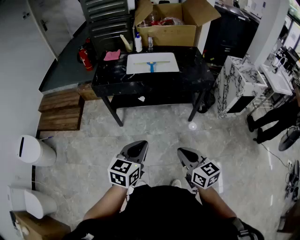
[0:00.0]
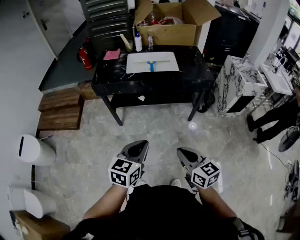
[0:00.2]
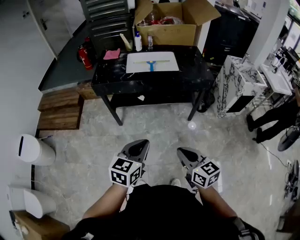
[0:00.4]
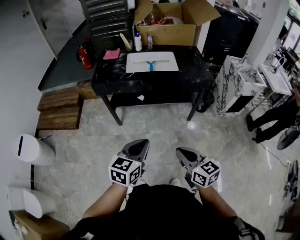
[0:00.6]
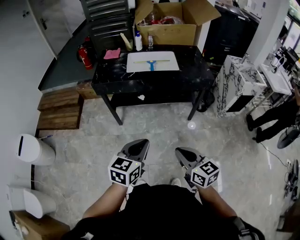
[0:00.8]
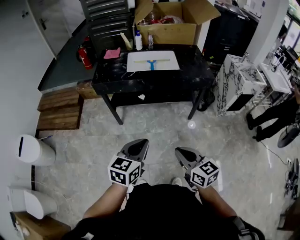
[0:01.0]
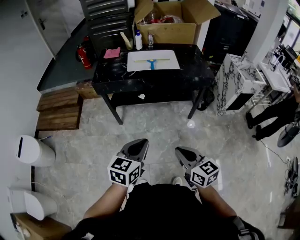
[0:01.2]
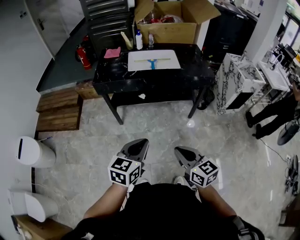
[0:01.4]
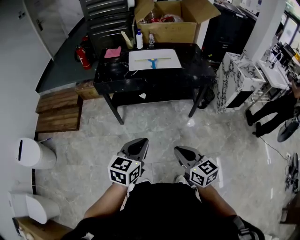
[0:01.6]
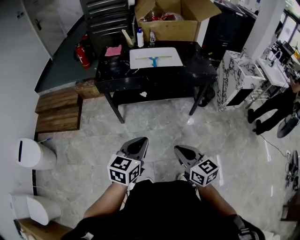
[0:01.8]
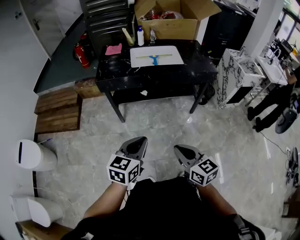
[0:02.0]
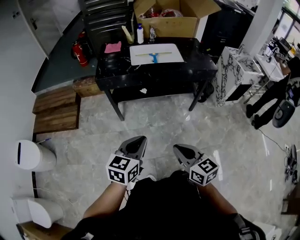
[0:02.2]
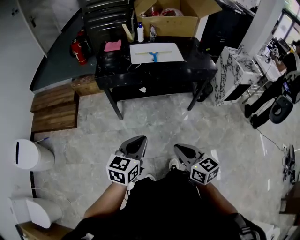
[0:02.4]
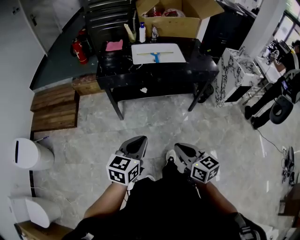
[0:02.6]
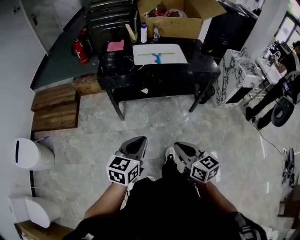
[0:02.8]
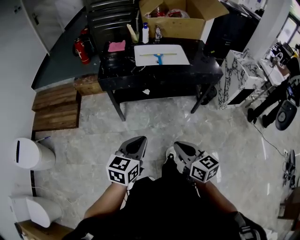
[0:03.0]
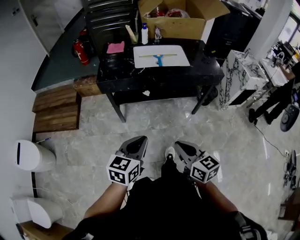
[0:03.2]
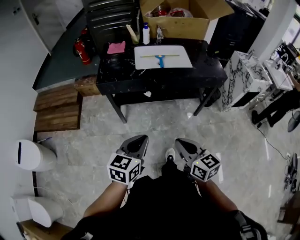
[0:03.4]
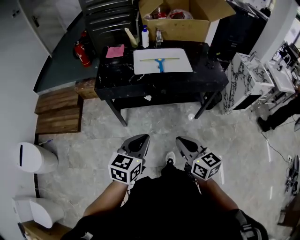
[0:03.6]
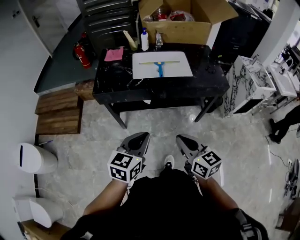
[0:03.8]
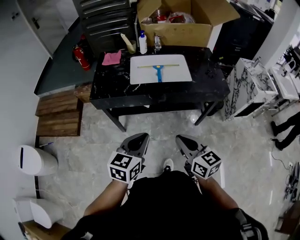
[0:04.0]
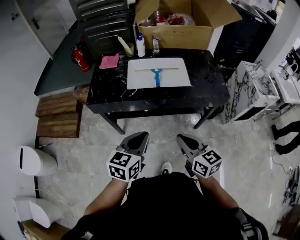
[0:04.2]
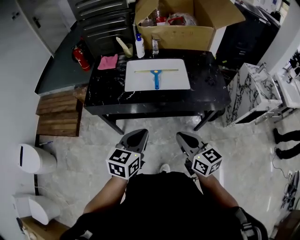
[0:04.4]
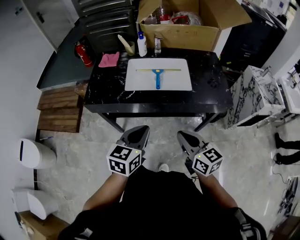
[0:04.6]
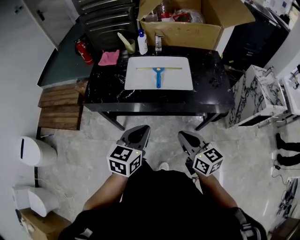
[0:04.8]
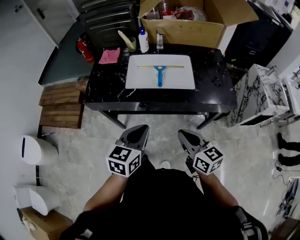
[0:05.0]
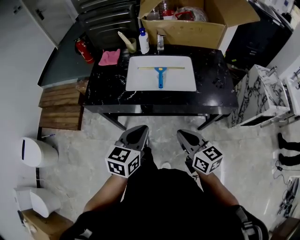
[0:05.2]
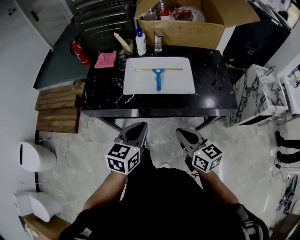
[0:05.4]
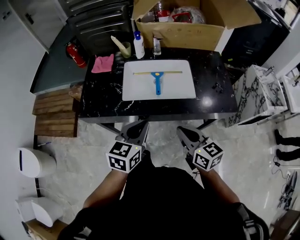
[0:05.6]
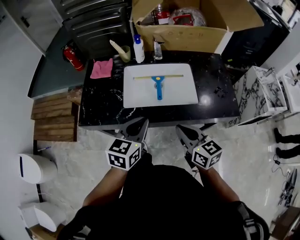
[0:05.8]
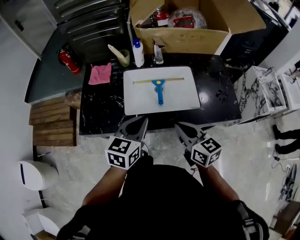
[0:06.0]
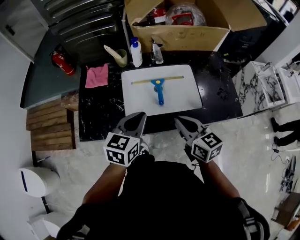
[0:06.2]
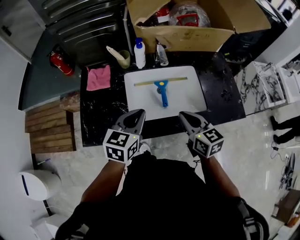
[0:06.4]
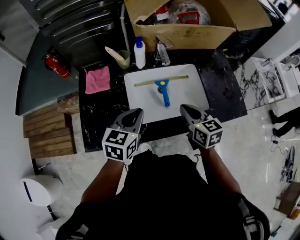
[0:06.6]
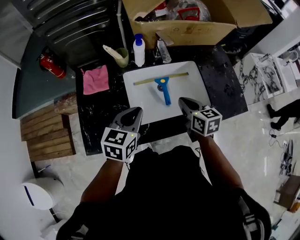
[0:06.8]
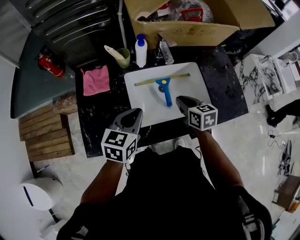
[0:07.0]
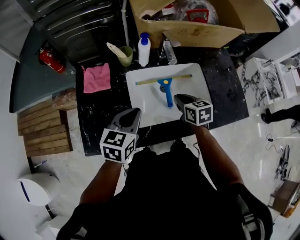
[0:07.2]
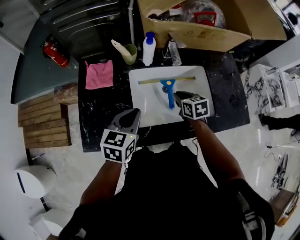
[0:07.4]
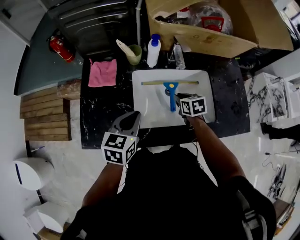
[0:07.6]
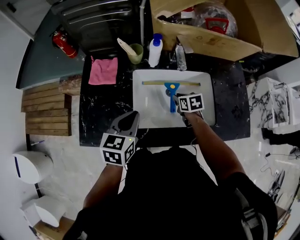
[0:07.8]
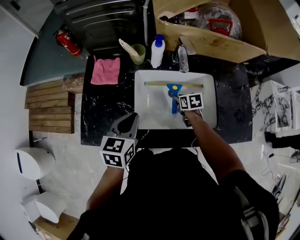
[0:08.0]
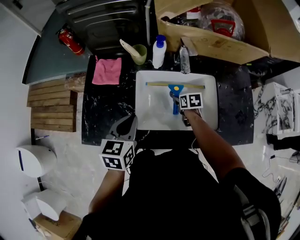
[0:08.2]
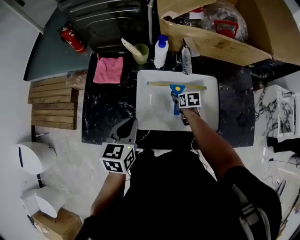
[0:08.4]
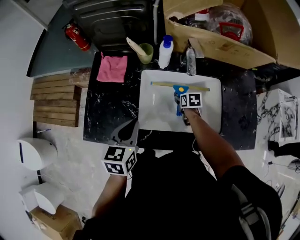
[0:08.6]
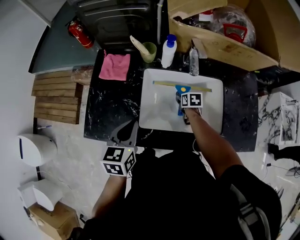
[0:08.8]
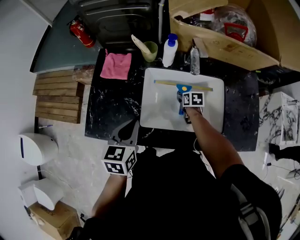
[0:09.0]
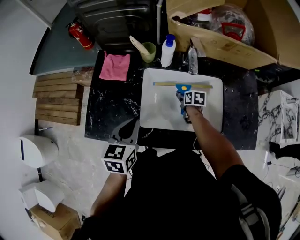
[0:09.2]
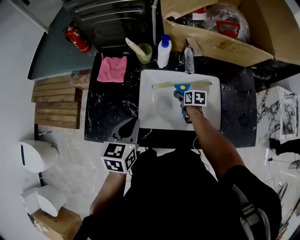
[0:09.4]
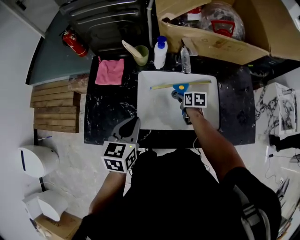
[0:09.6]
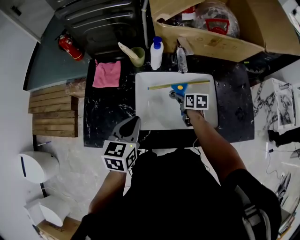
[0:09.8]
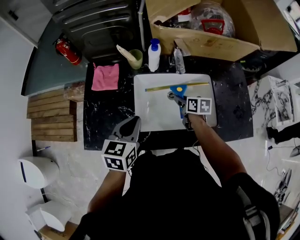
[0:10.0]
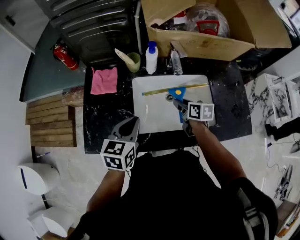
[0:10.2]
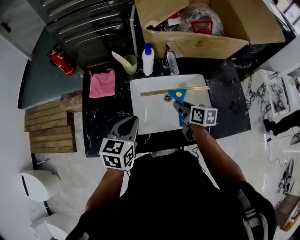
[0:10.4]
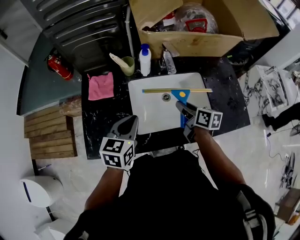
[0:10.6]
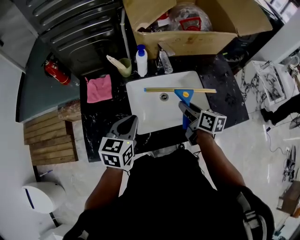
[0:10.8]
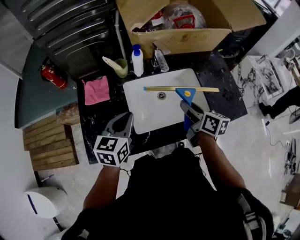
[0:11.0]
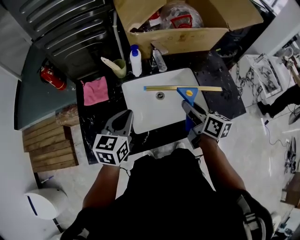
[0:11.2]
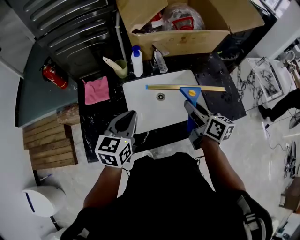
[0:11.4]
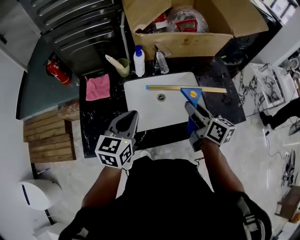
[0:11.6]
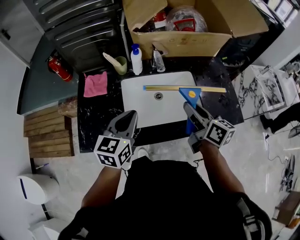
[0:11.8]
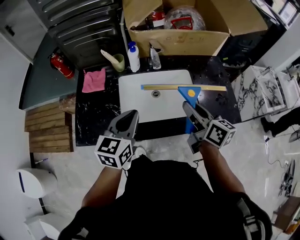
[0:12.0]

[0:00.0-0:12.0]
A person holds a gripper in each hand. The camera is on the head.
0:00.0 to 0:01.6: Both grippers move to the left, some 5 cm.
0:01.6 to 0:03.0: The grippers both shift to the left by roughly 10 cm.
0:03.0 to 0:04.4: Both grippers move forward and to the right, roughly 30 cm.
0:04.4 to 0:06.0: The grippers both shift forward by about 20 cm.
0:06.0 to 0:07.6: The left gripper shifts roughly 15 cm forward, to the left and downward. Meanwhile the right gripper heads forward and downward, covering roughly 30 cm, and points its fingers roughly 30 degrees further downward.
0:07.6 to 0:09.0: The right gripper moves downward, roughly 10 cm, and opens.
0:09.0 to 0:10.4: The right gripper moves upward, some 20 cm, and changes its angle by approximately 30 degrees.
0:10.4 to 0:12.0: The right gripper shifts about 20 cm upward, backward and to the right, and turns by some 20 degrees, while the left gripper is displaced to the right, upward and backward by approximately 10 cm.

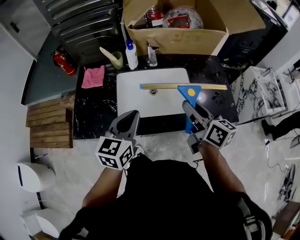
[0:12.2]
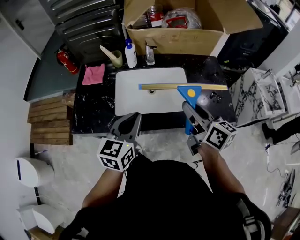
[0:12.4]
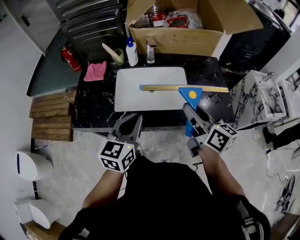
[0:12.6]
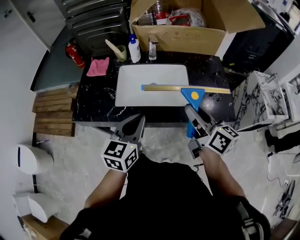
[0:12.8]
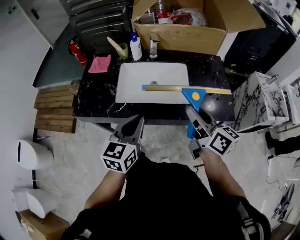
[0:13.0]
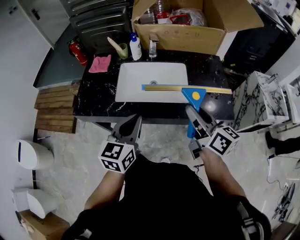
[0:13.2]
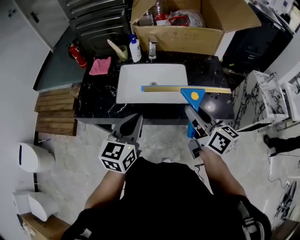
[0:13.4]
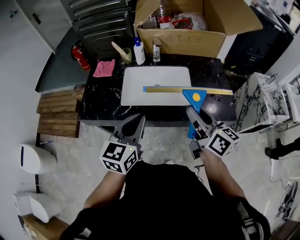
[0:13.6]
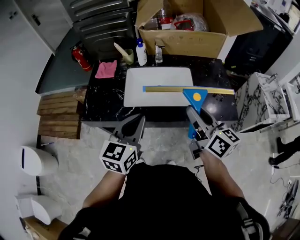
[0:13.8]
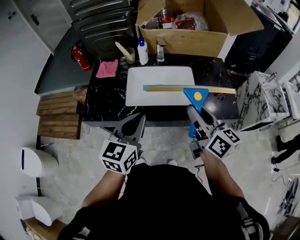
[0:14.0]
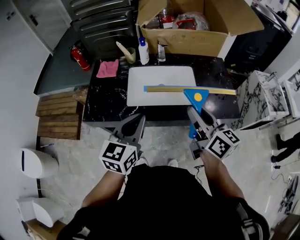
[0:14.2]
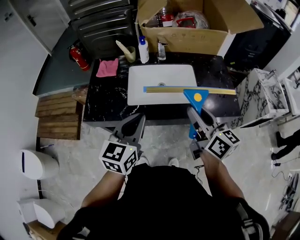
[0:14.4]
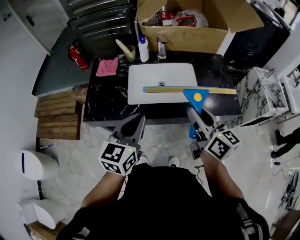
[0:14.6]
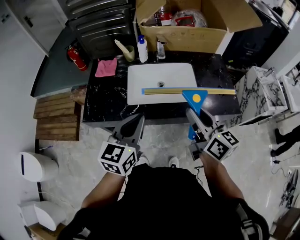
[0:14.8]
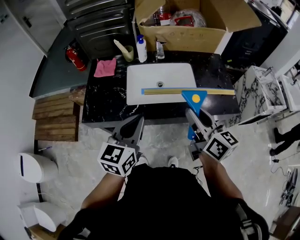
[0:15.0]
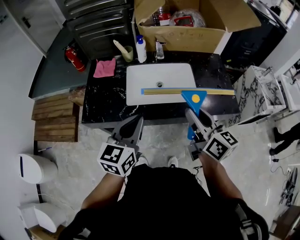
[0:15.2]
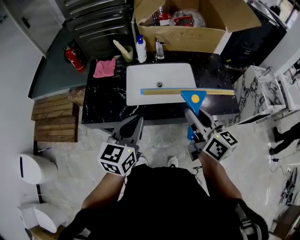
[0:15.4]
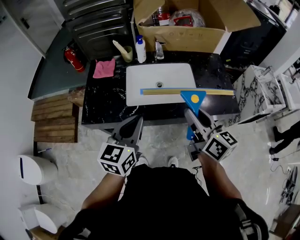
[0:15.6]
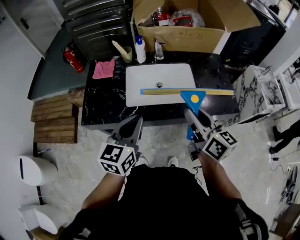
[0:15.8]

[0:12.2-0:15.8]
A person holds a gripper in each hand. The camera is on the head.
0:12.2 to 0:14.0: Both grippers move backward, about 10 cm.
0:14.0 to 0:15.8: The grippers make only small movements.

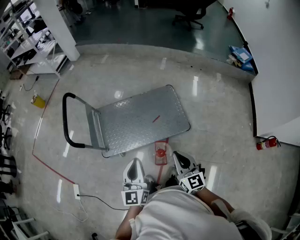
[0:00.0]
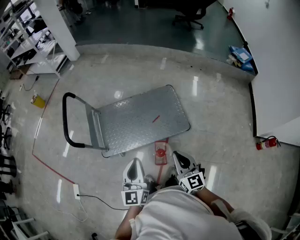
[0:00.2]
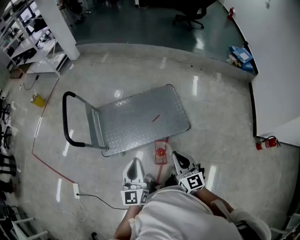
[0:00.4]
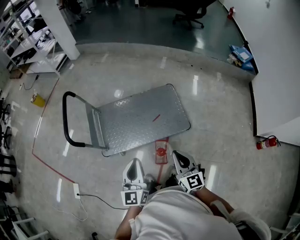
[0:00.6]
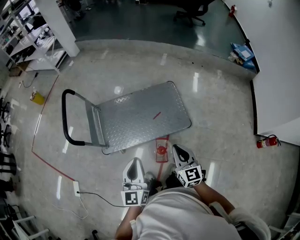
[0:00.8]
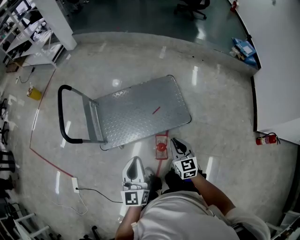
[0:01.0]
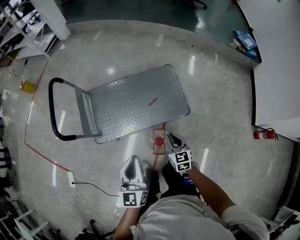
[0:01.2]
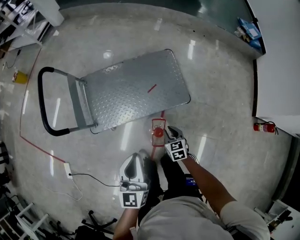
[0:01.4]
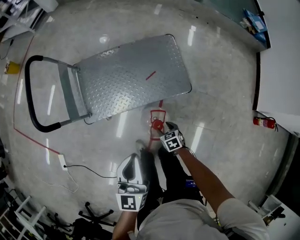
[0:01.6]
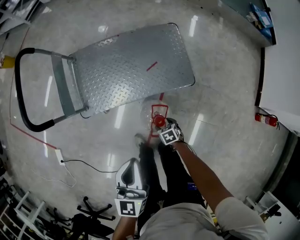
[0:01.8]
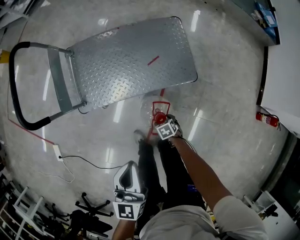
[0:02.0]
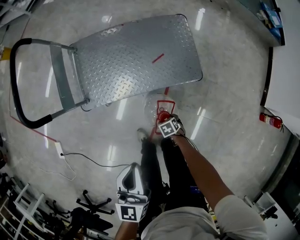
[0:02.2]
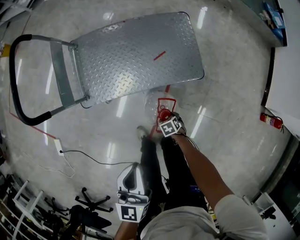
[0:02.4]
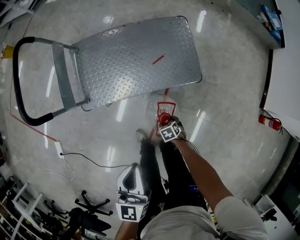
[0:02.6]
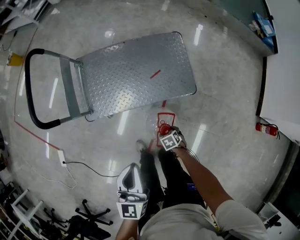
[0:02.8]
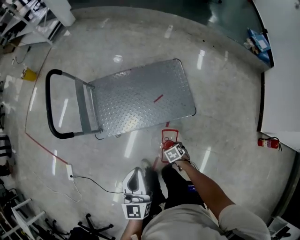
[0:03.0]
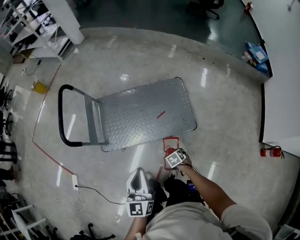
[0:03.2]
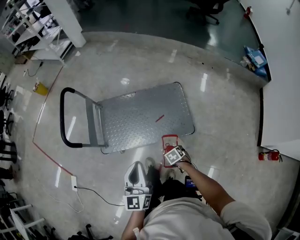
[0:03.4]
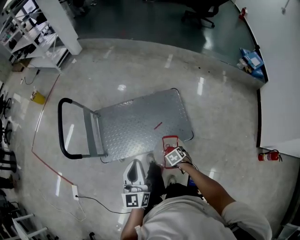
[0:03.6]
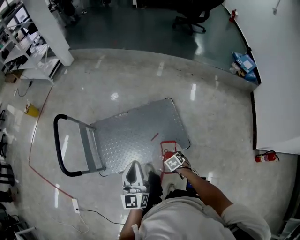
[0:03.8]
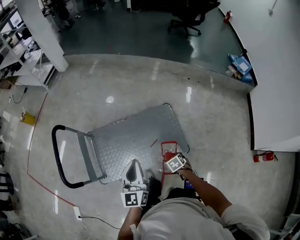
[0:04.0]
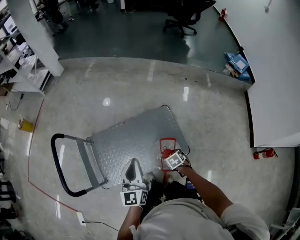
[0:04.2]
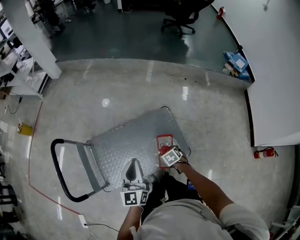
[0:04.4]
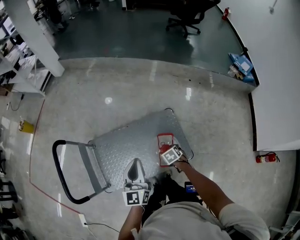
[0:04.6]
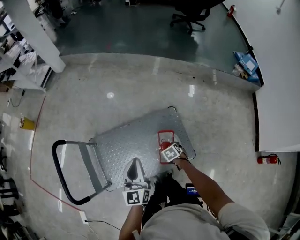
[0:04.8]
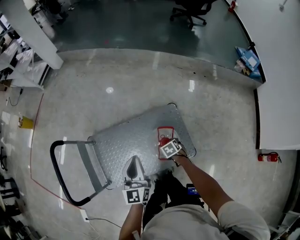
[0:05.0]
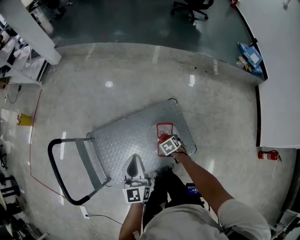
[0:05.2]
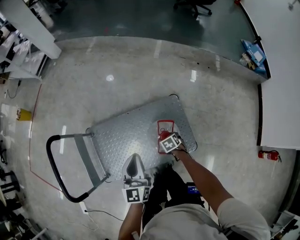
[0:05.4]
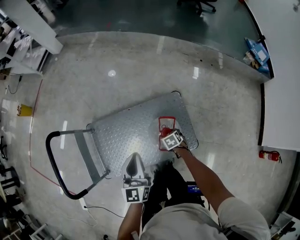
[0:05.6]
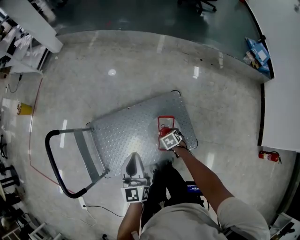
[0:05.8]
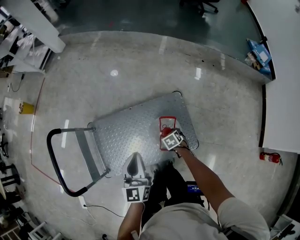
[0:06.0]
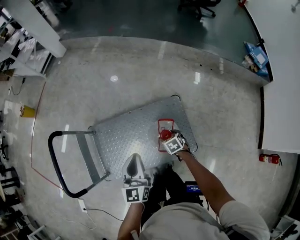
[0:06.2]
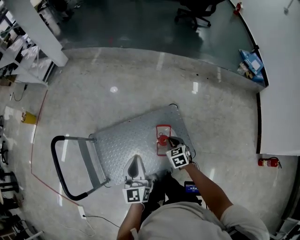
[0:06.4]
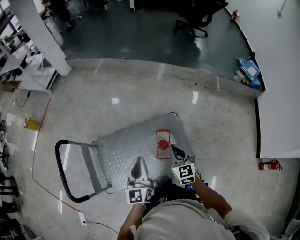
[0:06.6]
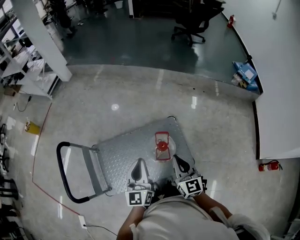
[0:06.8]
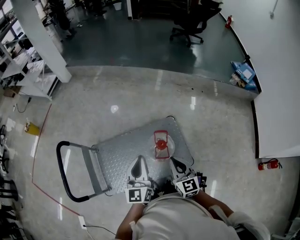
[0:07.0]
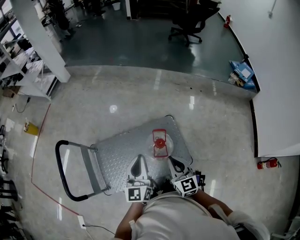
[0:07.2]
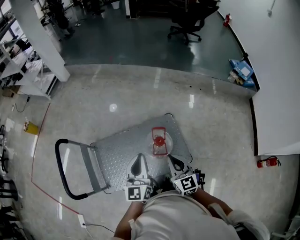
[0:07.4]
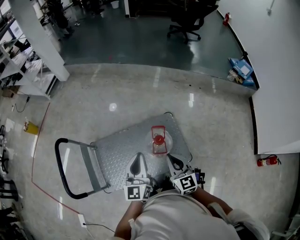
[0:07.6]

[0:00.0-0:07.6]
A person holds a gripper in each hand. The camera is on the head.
0:00.0 to 0:01.6: The left gripper is displaced downward by roughly 10 cm; the right gripper heads downward, covering some 40 cm, tilts its fingers about 50 degrees downward, and opens its fingers.
0:01.6 to 0:03.0: The right gripper moves about 15 cm downward and comes back, while the left gripper reaches roughly 10 cm downward, then returns.
0:03.0 to 0:04.6: The right gripper ends up some 40 cm from where it was; the left gripper shifts by roughly 35 cm.
0:04.6 to 0:06.0: The grippers both shift downward by approximately 10 cm.
0:06.0 to 0:07.6: The right gripper travels upward and backward by approximately 40 cm, angles its fingers upward, by roughly 60 degrees, and closes; the left gripper moves upward and backward, about 15 cm.
